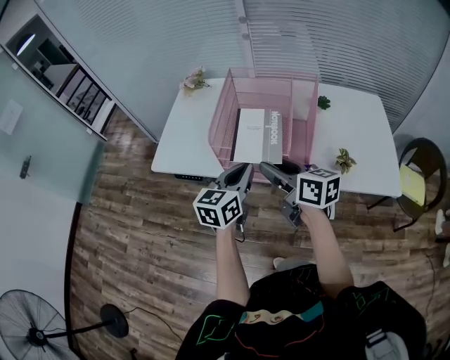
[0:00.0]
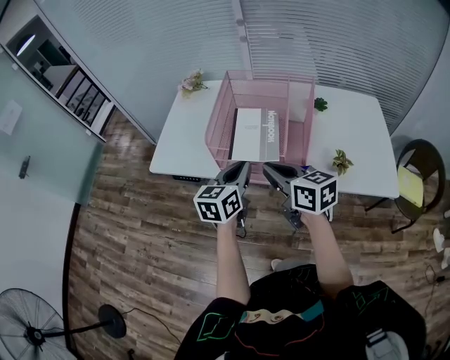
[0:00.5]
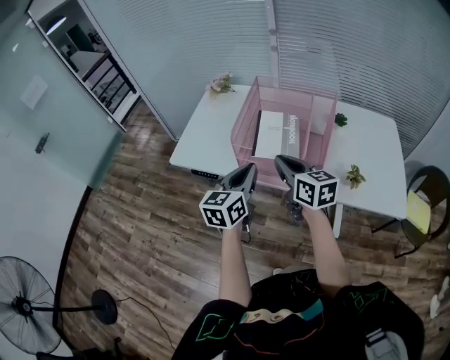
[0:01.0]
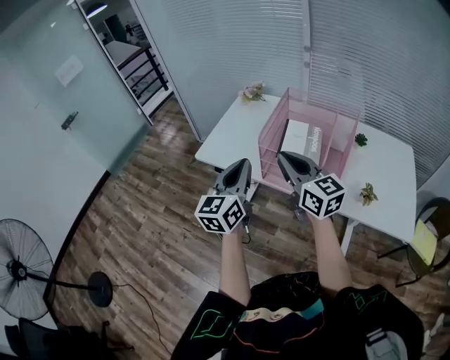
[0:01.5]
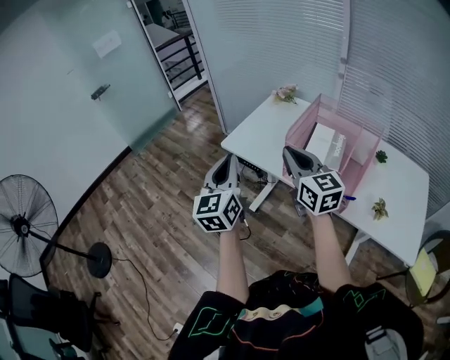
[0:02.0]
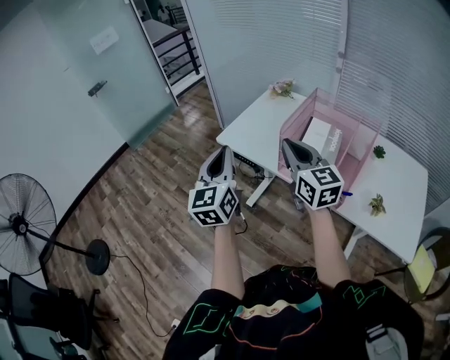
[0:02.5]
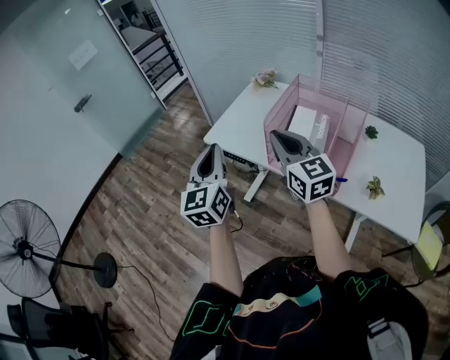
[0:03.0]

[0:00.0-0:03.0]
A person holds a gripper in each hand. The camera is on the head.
0.0 to 1.5 s: The right gripper goes about 10 cm upward and to the left, changes its angle by roughly 30 degrees, and closes. Meanwhile the left gripper is displaced to the left and upward by about 15 cm, and turns by approximately 30 degrees.
1.5 to 3.0 s: The left gripper is displaced to the left by roughly 10 cm, and swivels some 20 degrees.

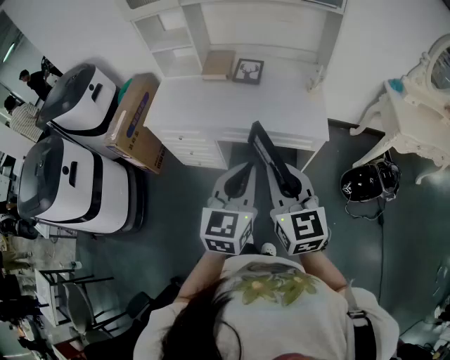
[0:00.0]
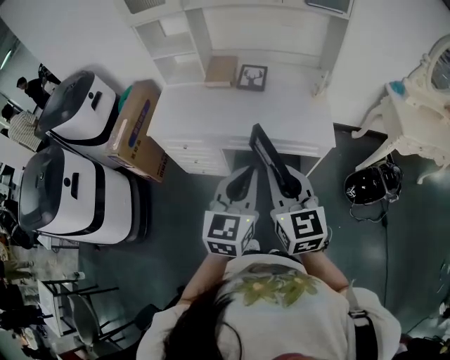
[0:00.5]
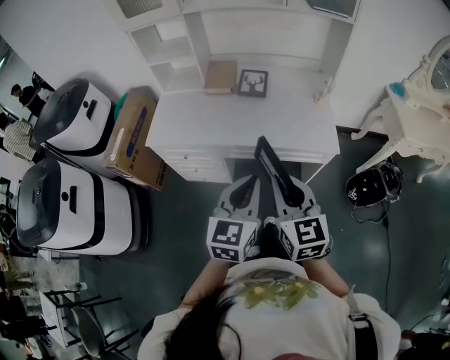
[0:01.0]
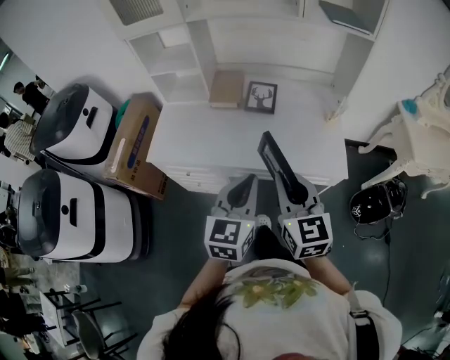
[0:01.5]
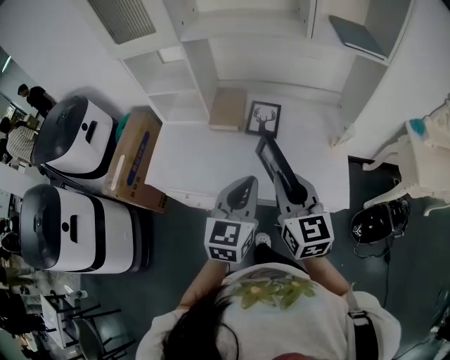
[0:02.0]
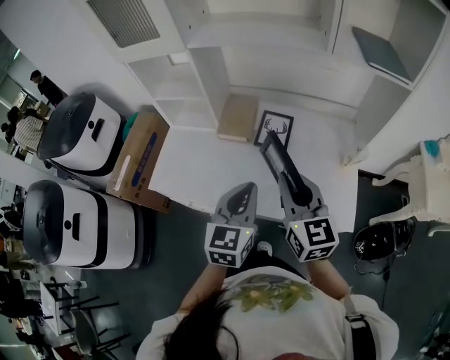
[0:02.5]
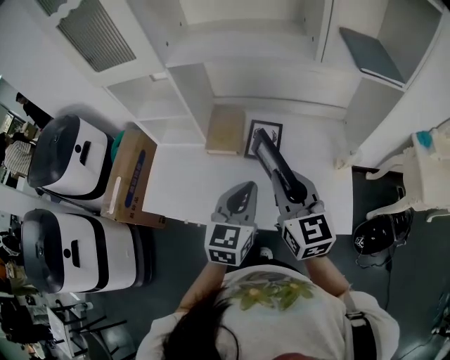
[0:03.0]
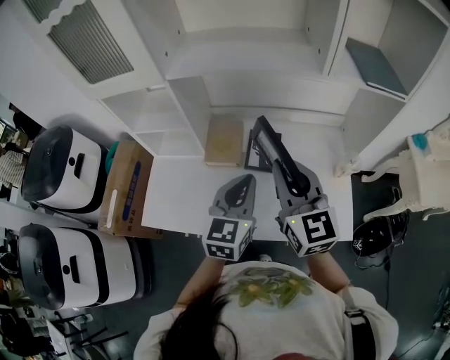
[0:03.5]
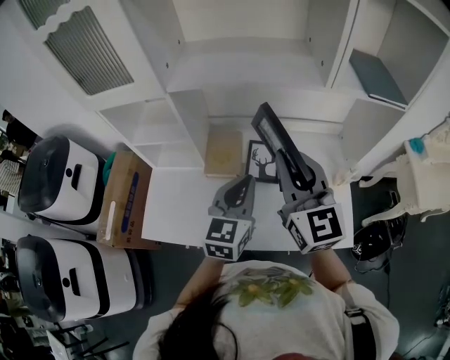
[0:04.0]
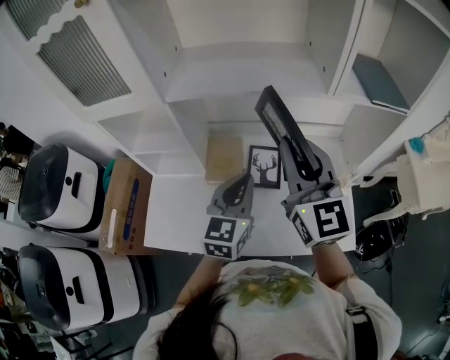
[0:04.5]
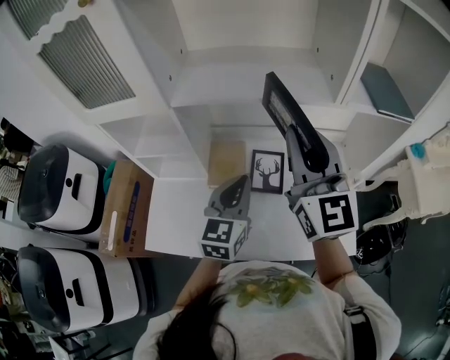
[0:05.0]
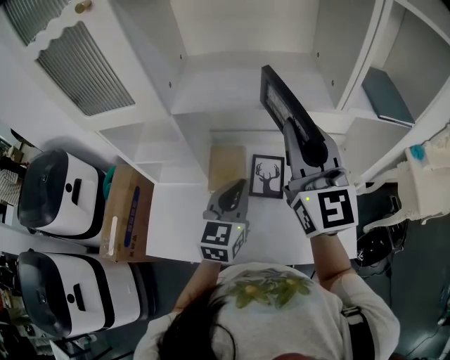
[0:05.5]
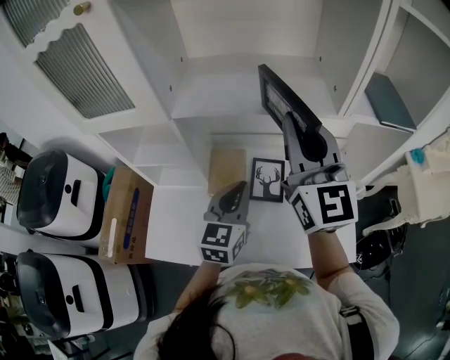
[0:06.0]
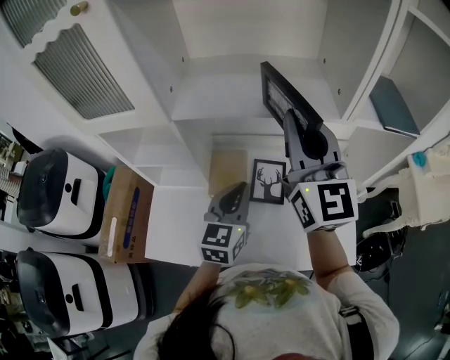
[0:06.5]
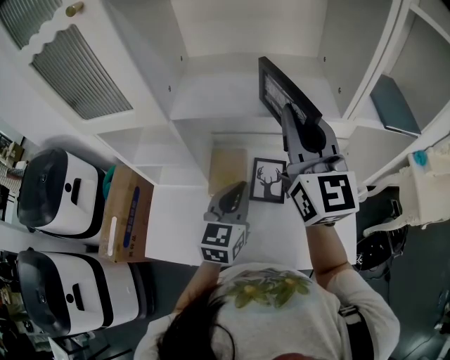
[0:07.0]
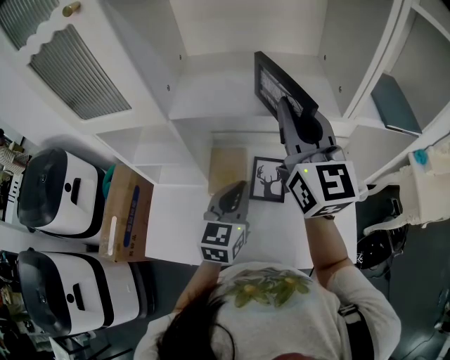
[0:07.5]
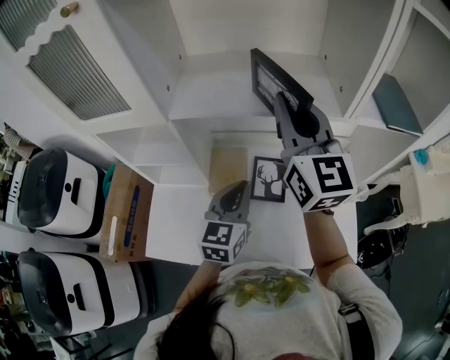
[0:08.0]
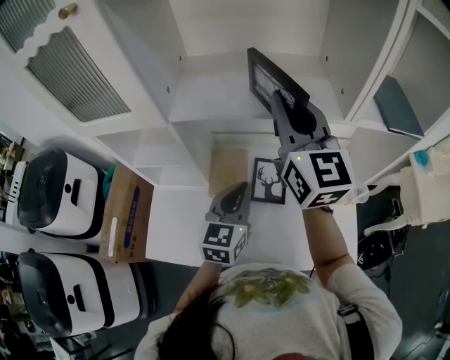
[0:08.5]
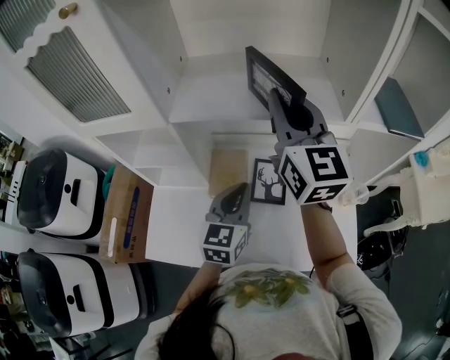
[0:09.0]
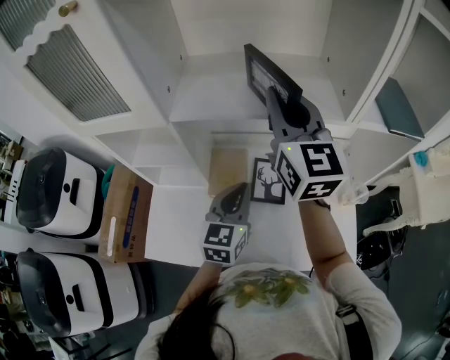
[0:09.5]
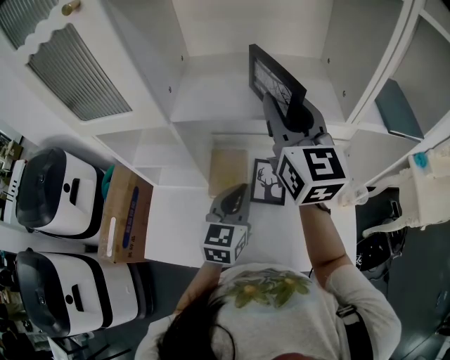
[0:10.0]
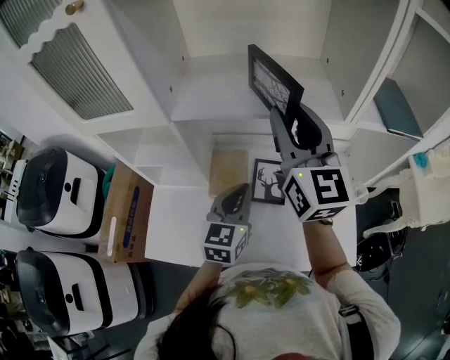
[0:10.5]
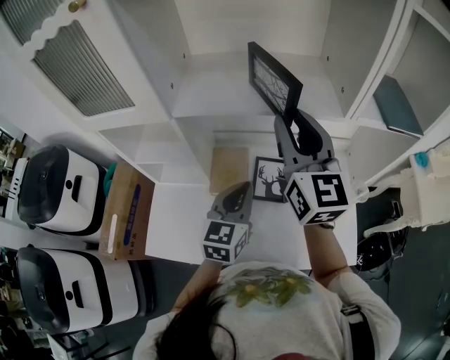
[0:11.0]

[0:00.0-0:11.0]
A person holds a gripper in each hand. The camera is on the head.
0.0 to 2.0 s: Both grippers move forward, approximately 30 cm.
2.0 to 3.5 s: The two grippers go about 20 cm forward.
3.5 to 5.5 s: The left gripper shifts about 10 cm forward; the right gripper is displaced upward and forward by approximately 15 cm.
5.5 to 7.5 s: The right gripper goes about 5 cm forward.
7.5 to 9.0 s: The grippers make only small movements.
9.0 to 11.0 s: The right gripper shifts by some 5 cm, and opens up.

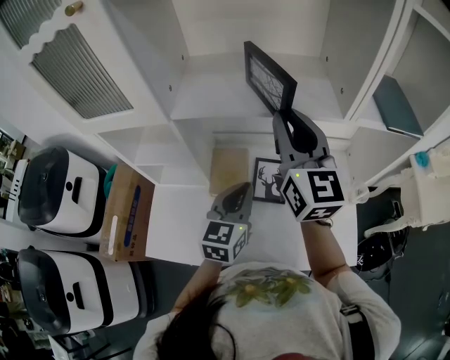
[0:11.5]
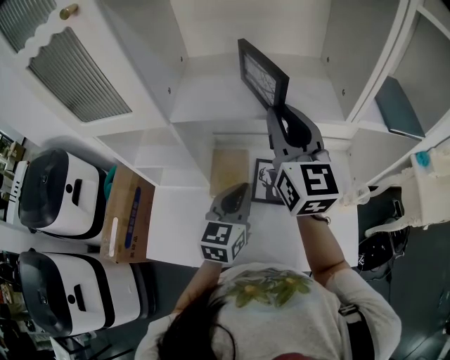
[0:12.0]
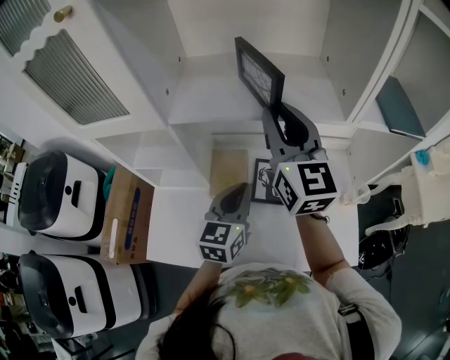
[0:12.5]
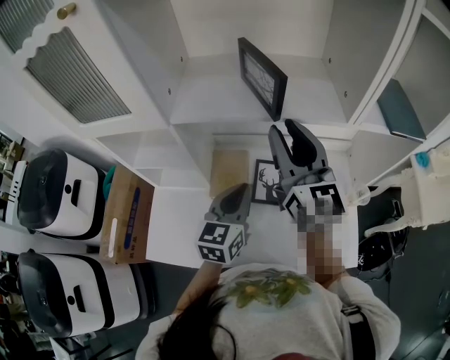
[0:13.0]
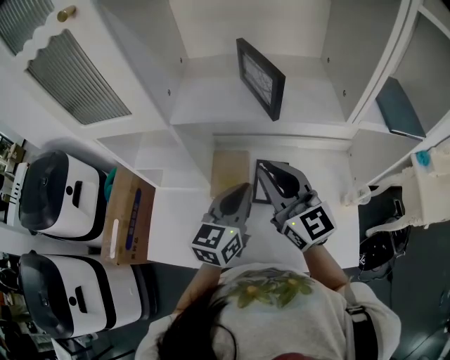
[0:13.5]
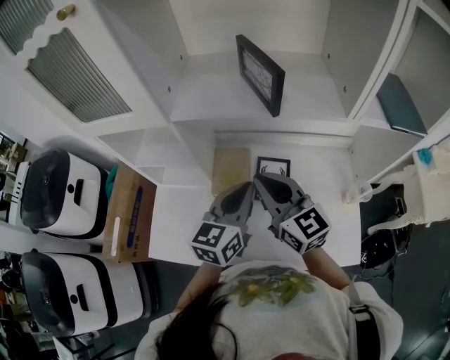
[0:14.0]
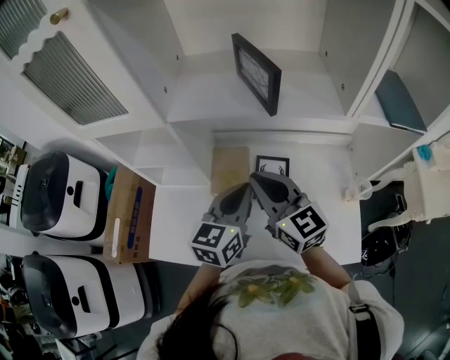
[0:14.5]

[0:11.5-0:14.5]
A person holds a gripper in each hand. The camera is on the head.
11.5 to 13.0 s: The grippers move only a little.
13.0 to 14.5 s: The right gripper shifts roughly 15 cm downward, to the left and backward, changes its angle by approximately 20 degrees, and closes its fingers.

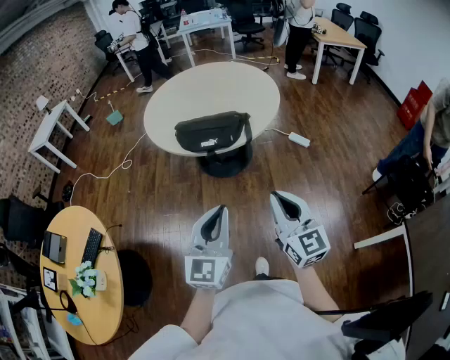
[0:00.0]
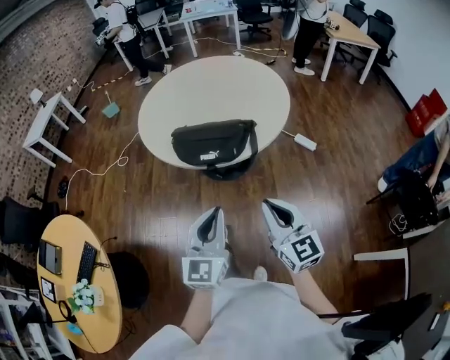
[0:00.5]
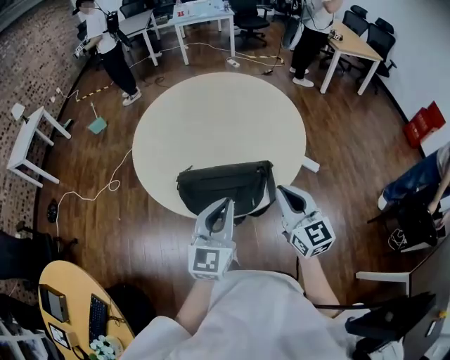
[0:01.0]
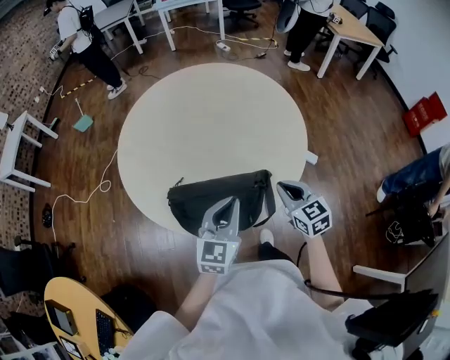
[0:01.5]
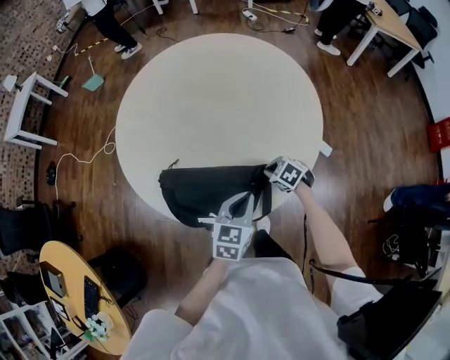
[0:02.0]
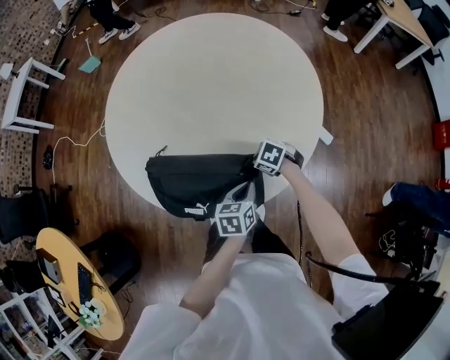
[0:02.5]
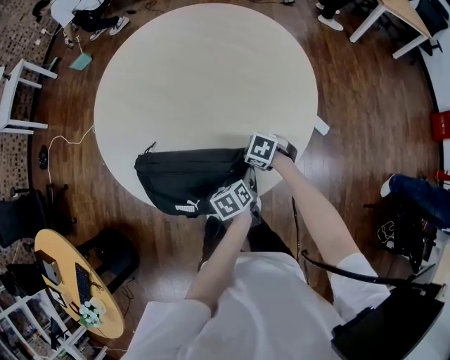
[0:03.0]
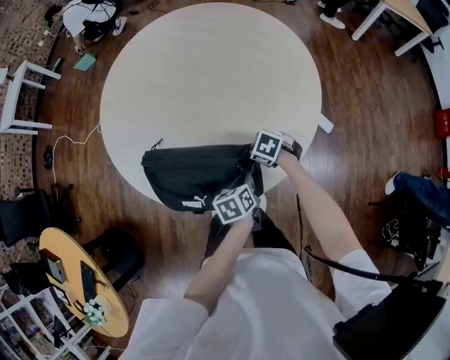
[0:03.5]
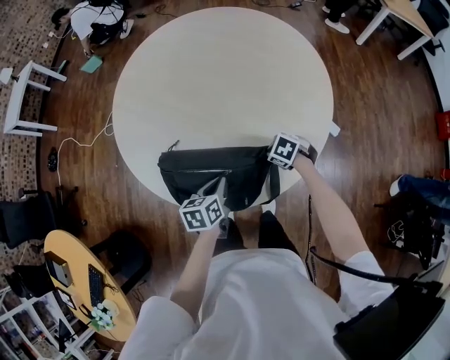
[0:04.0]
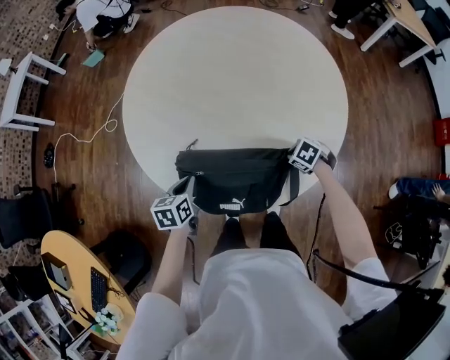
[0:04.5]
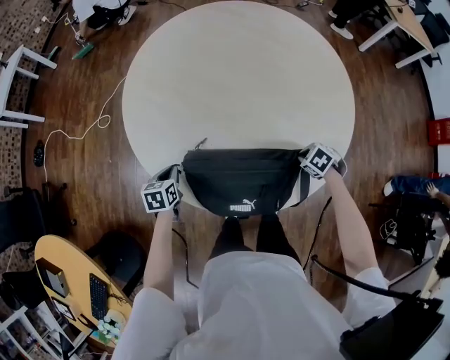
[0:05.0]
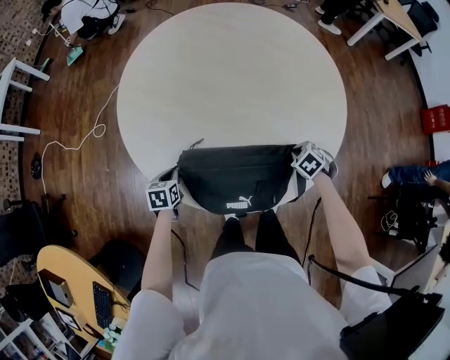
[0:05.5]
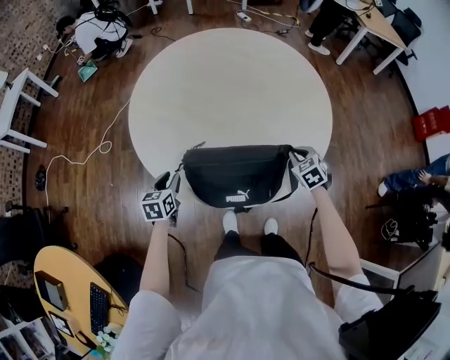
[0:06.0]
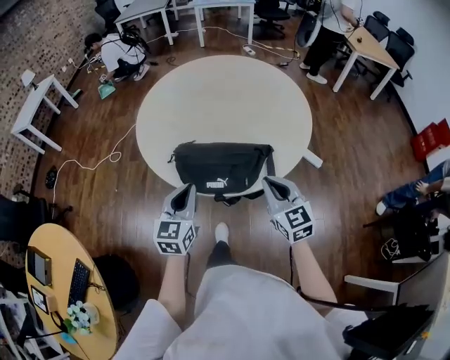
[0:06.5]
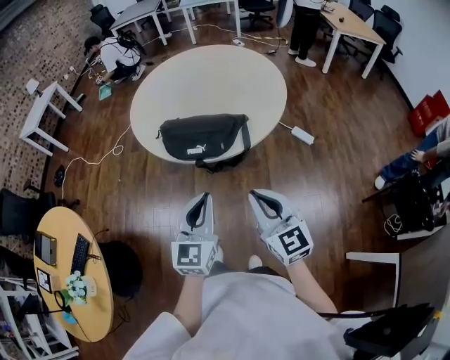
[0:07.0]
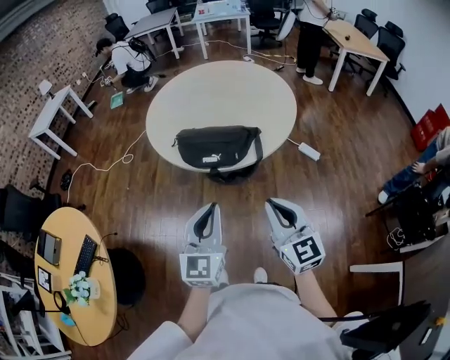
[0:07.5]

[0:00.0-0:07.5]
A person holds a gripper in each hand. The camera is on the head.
0.0 to 2.0 s: The two grippers travel together, forward, about 60 cm. The left gripper tilts its fingers roughly 30 degrees downward; the right gripper shifts approximately 35 cm downward, and tilts its fingers about 60 degrees downward.
2.0 to 4.0 s: The left gripper ends up approximately 15 cm from where it was, swivels approximately 30 degrees, and opens, then closes again.
4.0 to 5.5 s: The left gripper ends up roughly 30 cm from where it was, while the right gripper swivels about 20 degrees.
5.5 to 7.5 s: The two grippers travel together, some 50 cm. The right gripper tips its fingers upward by approximately 70 degrees, while the left gripper tips its fingers upward by approximately 50 degrees, and opens, then closes again.

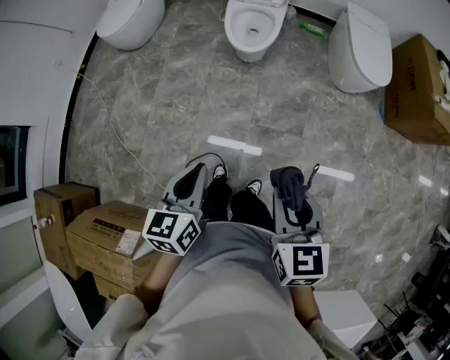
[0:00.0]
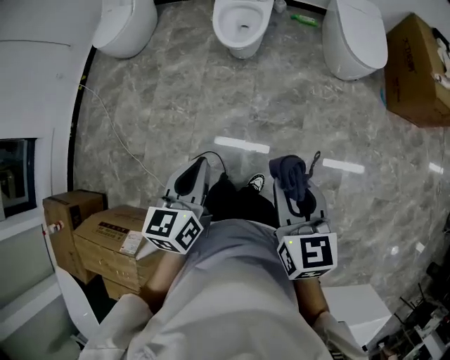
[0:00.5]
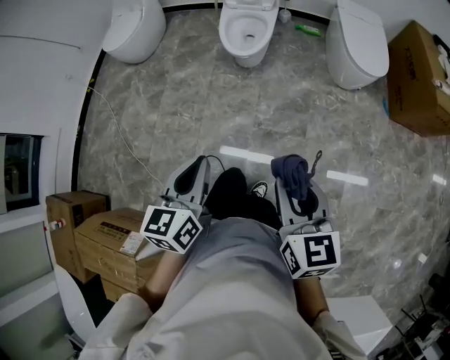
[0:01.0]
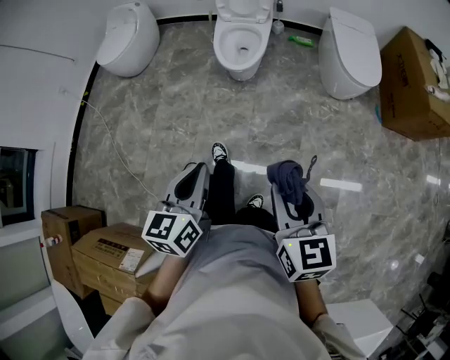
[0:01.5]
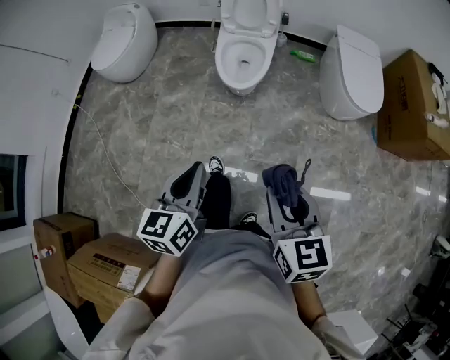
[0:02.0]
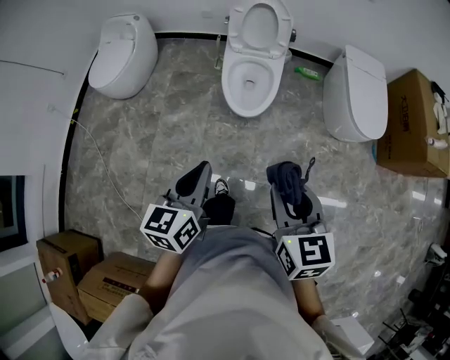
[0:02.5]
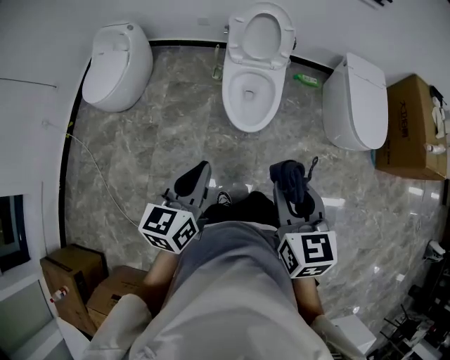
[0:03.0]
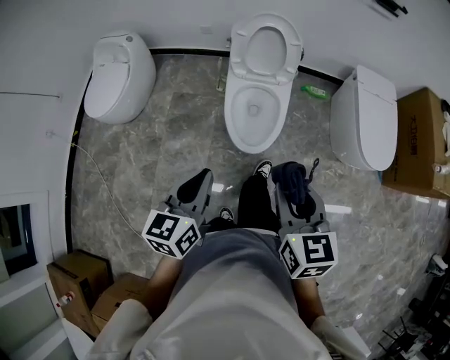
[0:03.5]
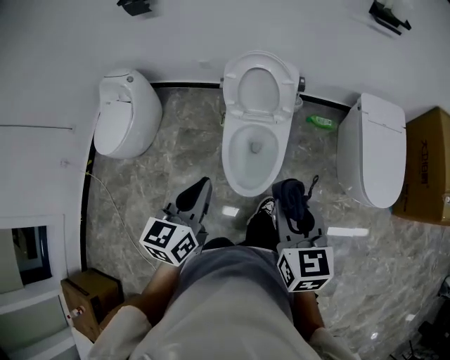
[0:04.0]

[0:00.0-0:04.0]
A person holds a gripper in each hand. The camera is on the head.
0.0 to 2.0 s: The grippers both shift forward by some 15 cm.
2.0 to 4.0 s: The two grippers travel together, forward, approximately 50 cm.
